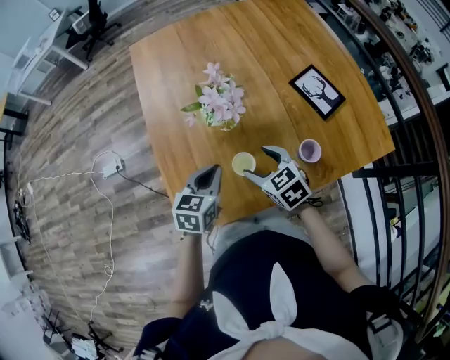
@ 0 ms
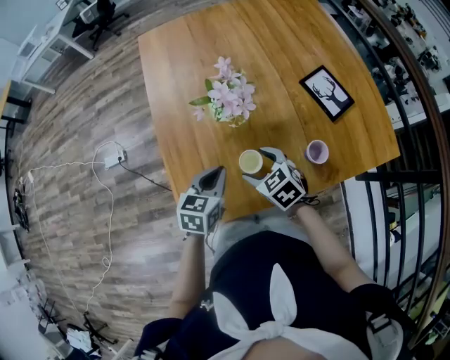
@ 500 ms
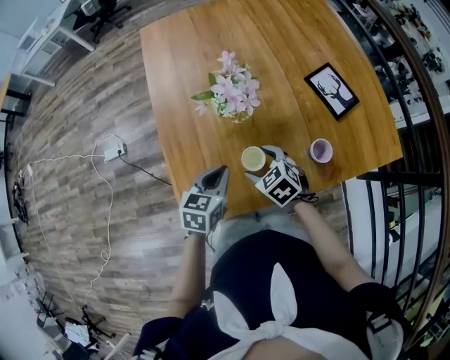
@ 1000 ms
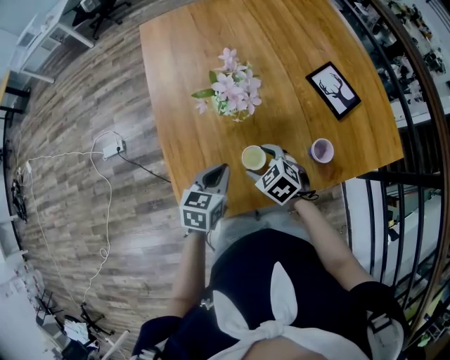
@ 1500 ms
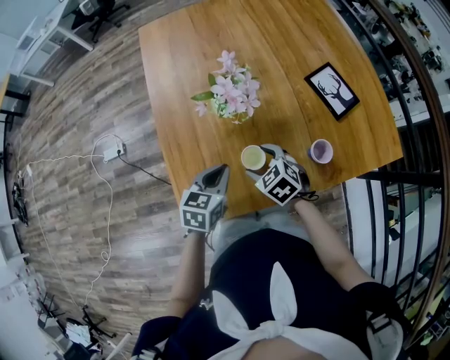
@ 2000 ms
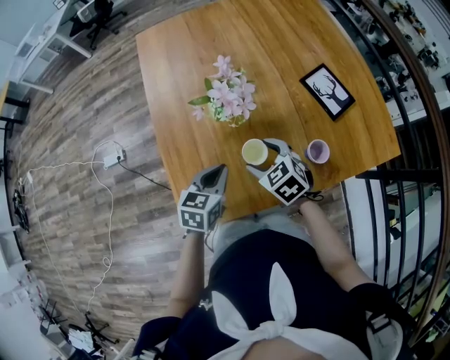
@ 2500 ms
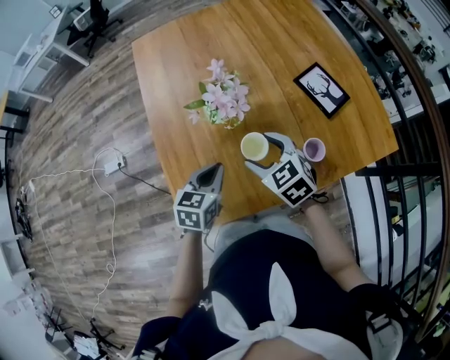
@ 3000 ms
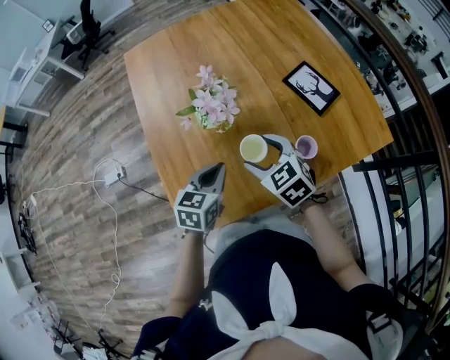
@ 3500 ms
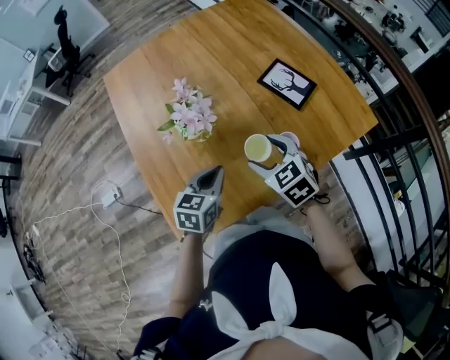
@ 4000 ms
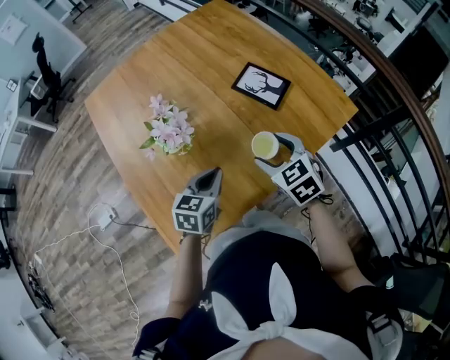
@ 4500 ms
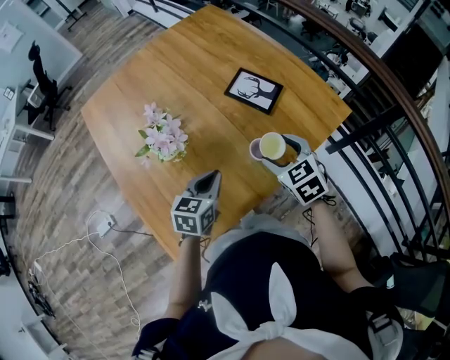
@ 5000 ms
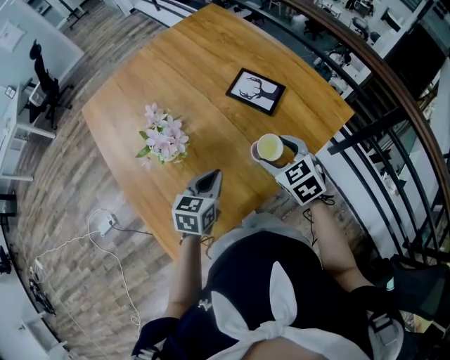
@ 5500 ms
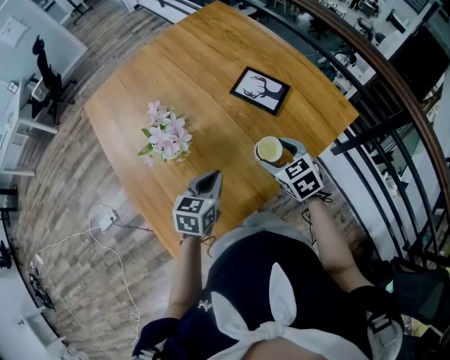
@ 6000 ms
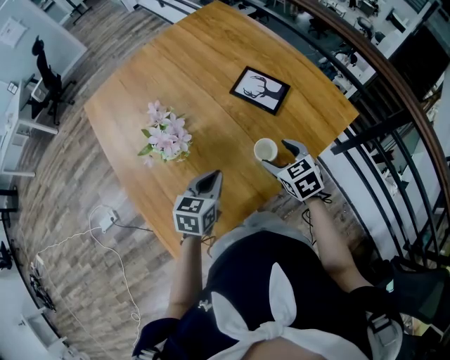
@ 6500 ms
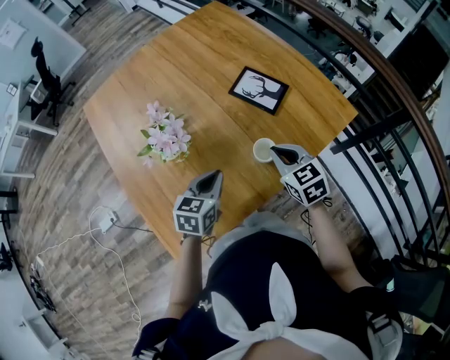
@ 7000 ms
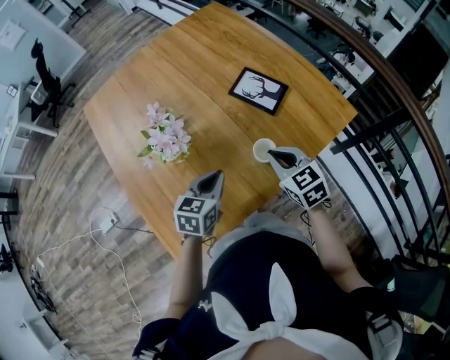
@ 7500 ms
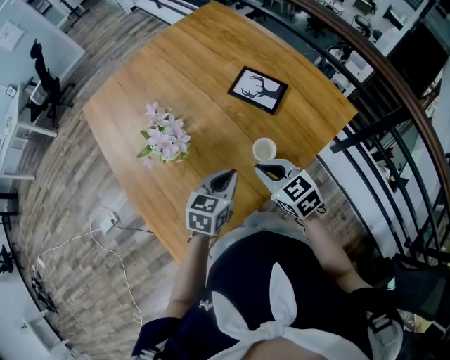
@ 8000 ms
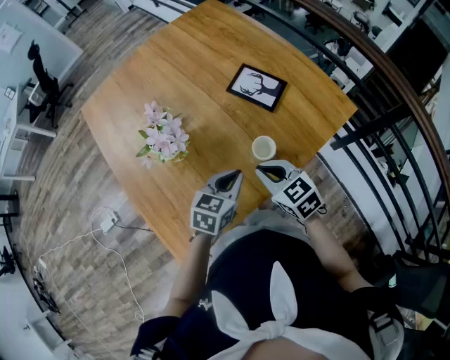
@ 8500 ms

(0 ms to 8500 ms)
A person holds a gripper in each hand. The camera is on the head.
0 ms - 2000 ms: The right gripper goes roughly 5 cm downward.
2000 ms - 4000 ms: The right gripper travels to the right and upward by approximately 15 cm, and turns by roughly 20 degrees. Meanwhile the left gripper goes about 10 cm to the right.
4000 ms - 6500 ms: The left gripper goes some 5 cm to the right. The right gripper goes some 15 cm to the right.
6500 ms - 8500 ms: The left gripper moves to the right, some 5 cm. The right gripper heads backward and to the left, covering approximately 10 cm, and closes.

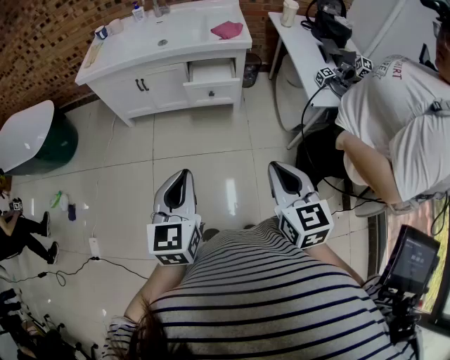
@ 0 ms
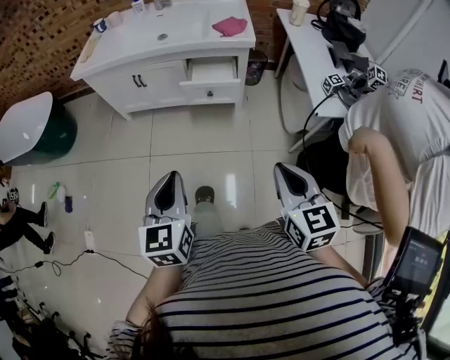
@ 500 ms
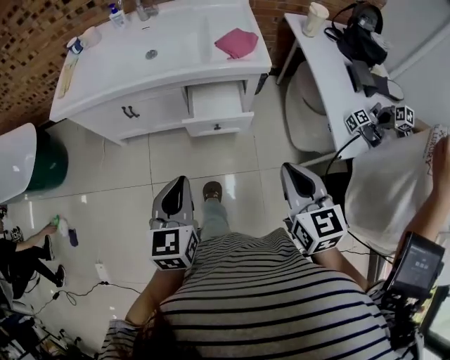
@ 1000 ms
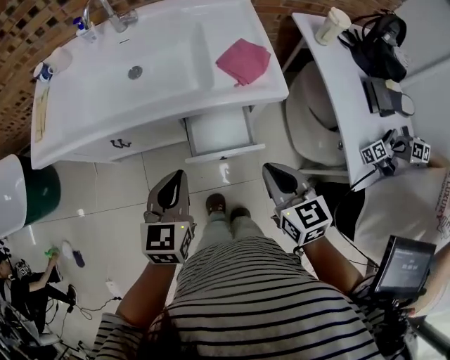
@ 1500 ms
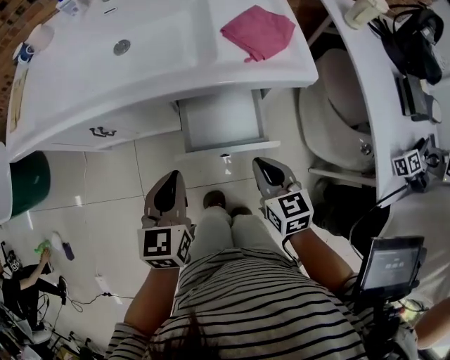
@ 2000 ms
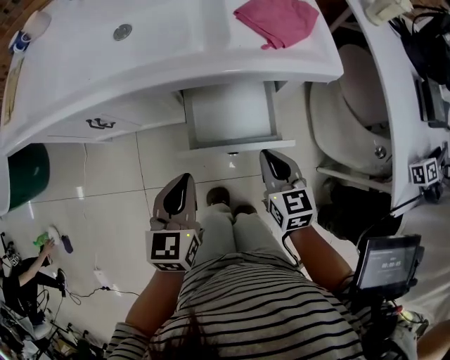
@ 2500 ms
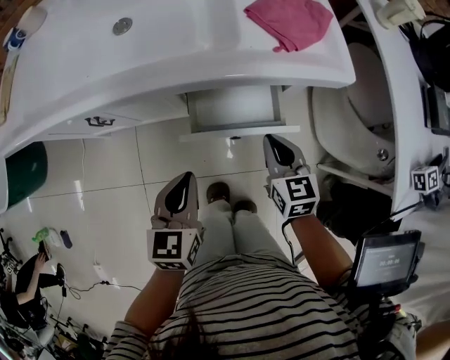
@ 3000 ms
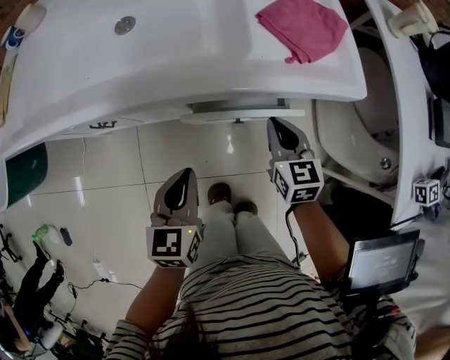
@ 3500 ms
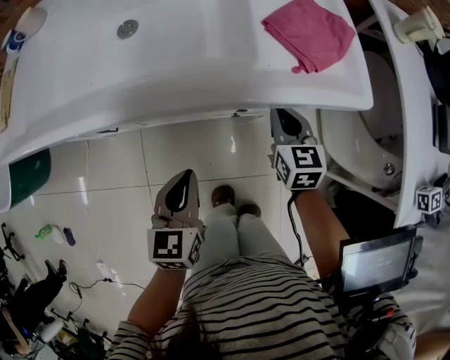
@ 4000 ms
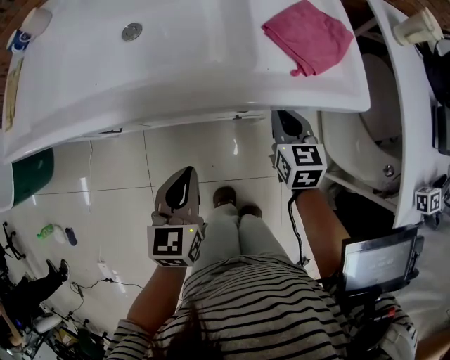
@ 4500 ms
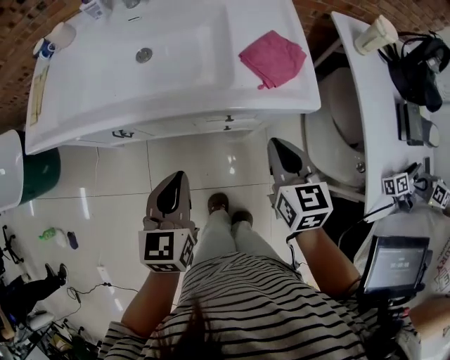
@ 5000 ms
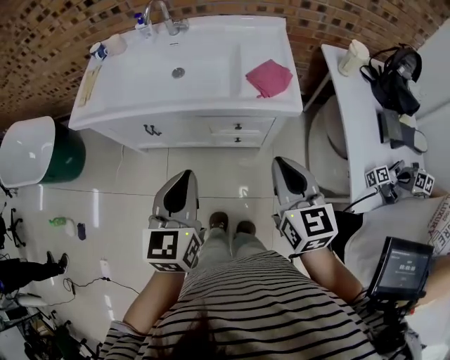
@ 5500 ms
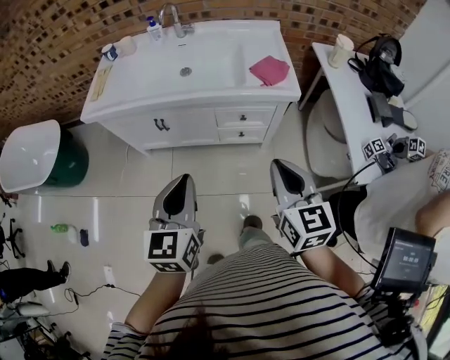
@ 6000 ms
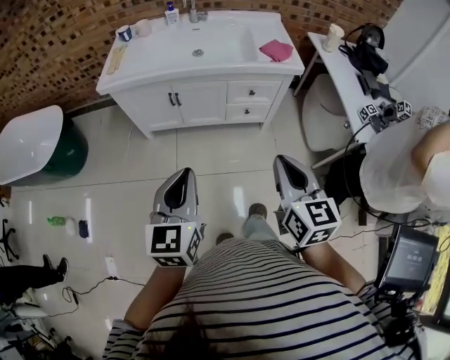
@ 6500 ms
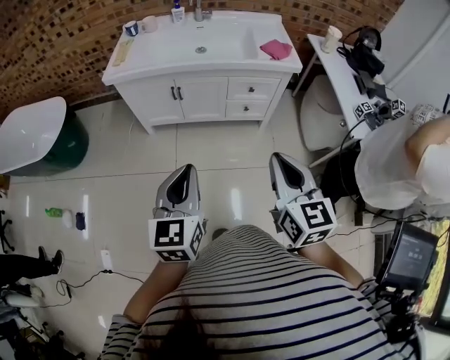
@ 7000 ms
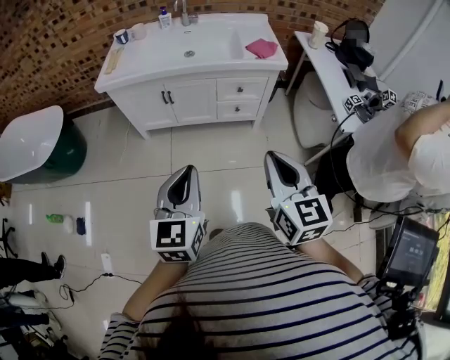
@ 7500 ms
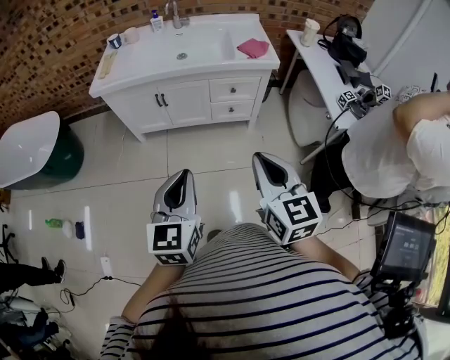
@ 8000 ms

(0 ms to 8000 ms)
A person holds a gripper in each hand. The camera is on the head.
0 ms - 2000 ms: The pair of grippers is taken forward, approximately 50 cm. The two grippers go about 30 cm downward.
2000 ms - 4000 ms: The right gripper travels forward by about 20 cm. Meanwhile the left gripper heads downward and forward, covering roughly 10 cm.
4000 ms - 6000 ms: Both grippers travel together upward and backward, approximately 40 cm.
6000 ms - 8000 ms: The right gripper moves backward and to the left, some 25 cm. Meanwhile the left gripper shifts roughly 25 cm backward.

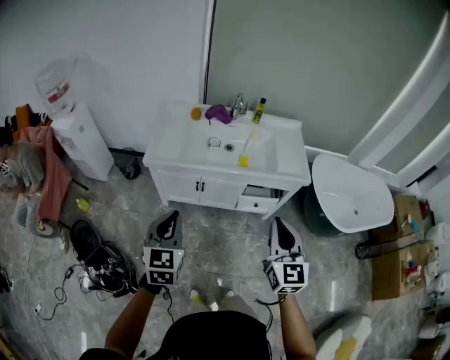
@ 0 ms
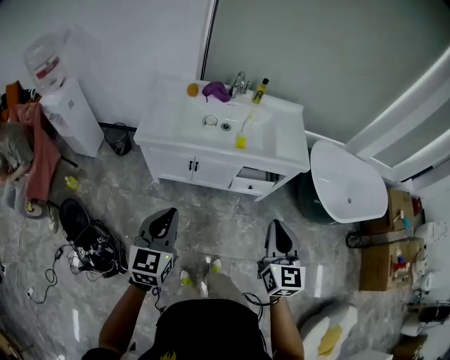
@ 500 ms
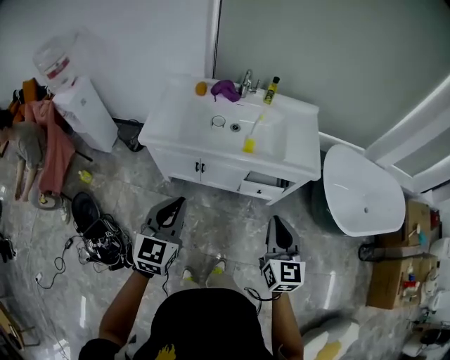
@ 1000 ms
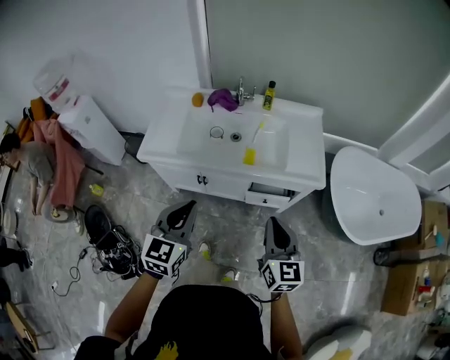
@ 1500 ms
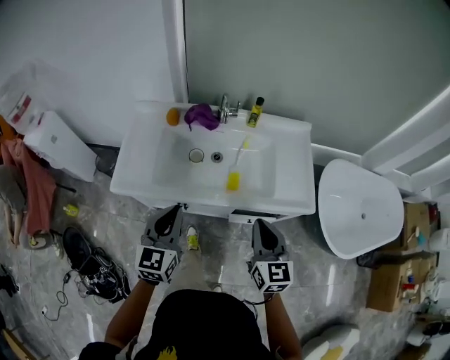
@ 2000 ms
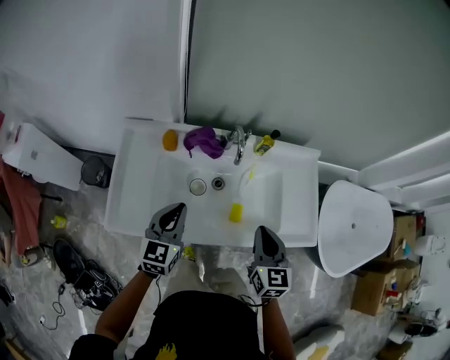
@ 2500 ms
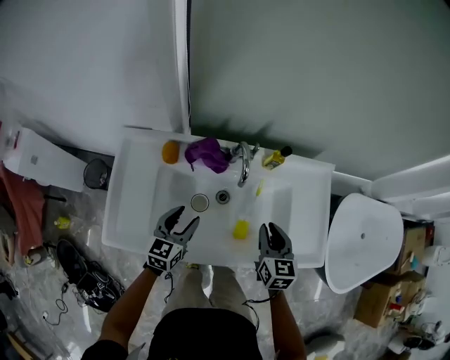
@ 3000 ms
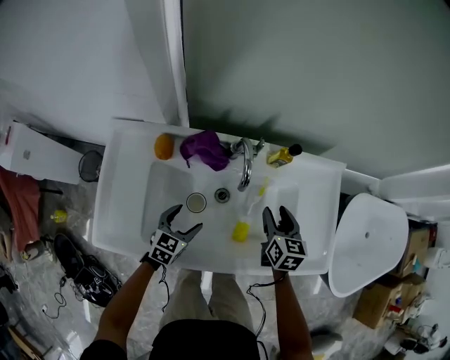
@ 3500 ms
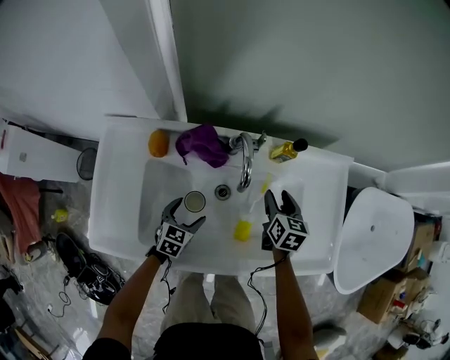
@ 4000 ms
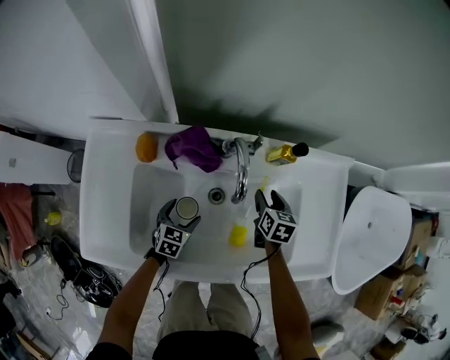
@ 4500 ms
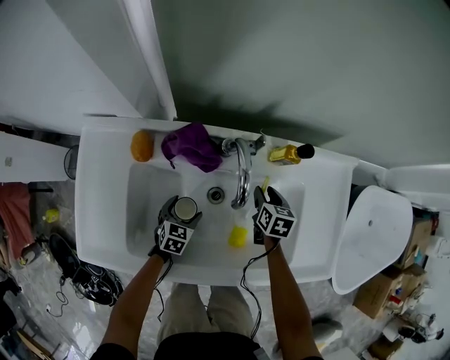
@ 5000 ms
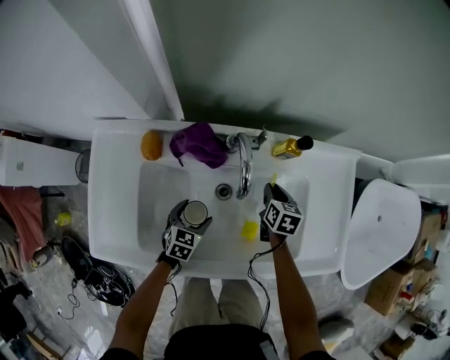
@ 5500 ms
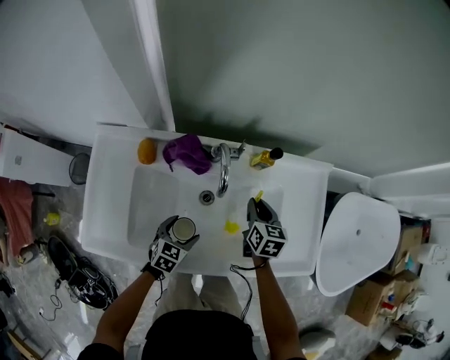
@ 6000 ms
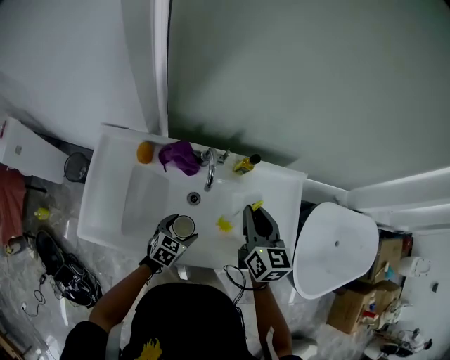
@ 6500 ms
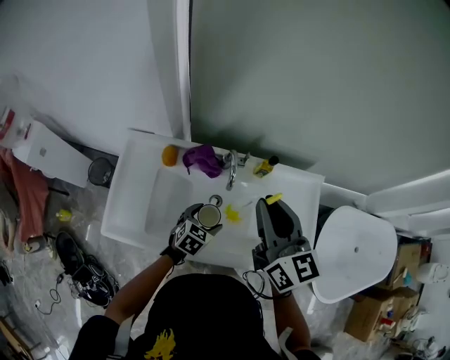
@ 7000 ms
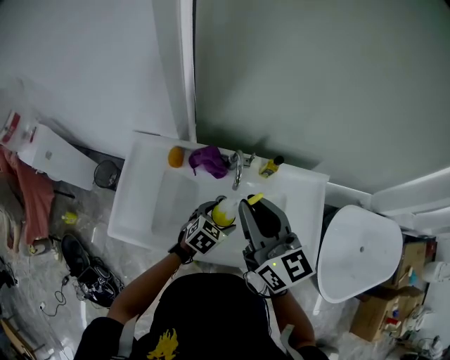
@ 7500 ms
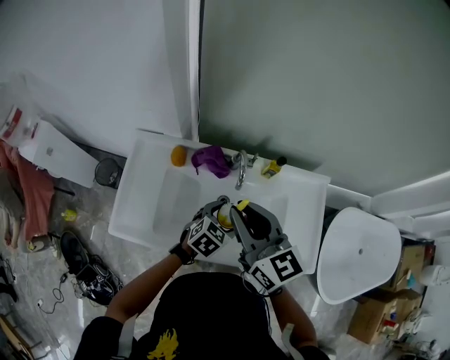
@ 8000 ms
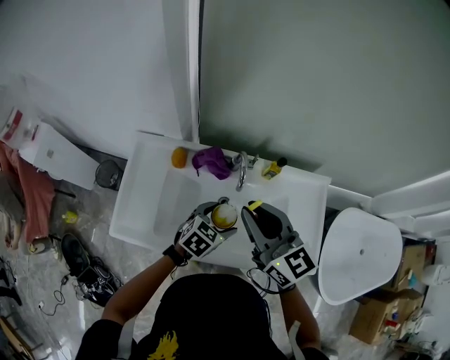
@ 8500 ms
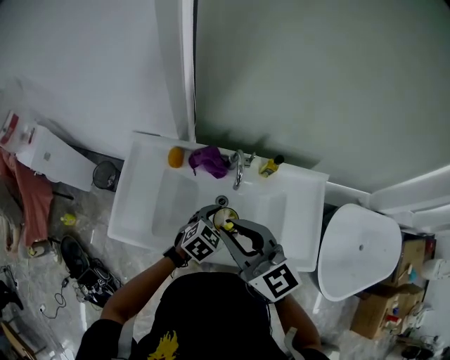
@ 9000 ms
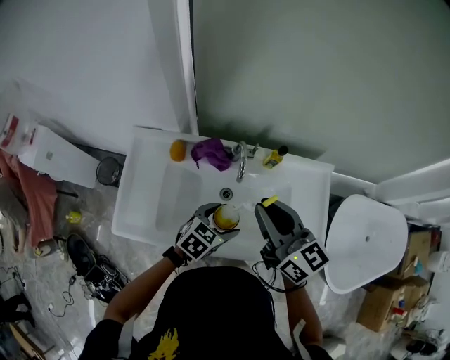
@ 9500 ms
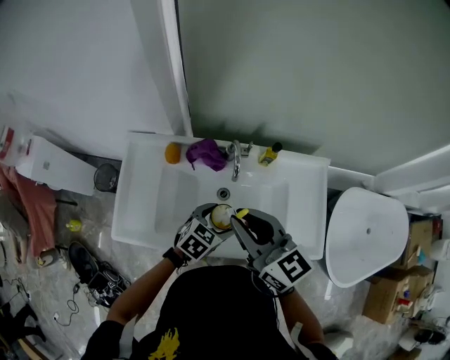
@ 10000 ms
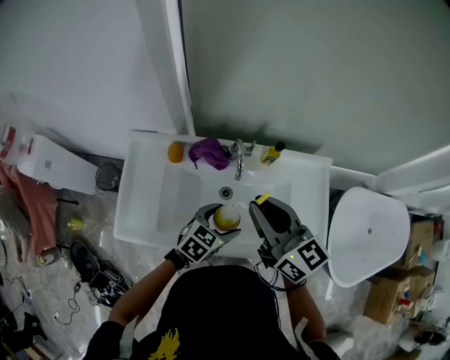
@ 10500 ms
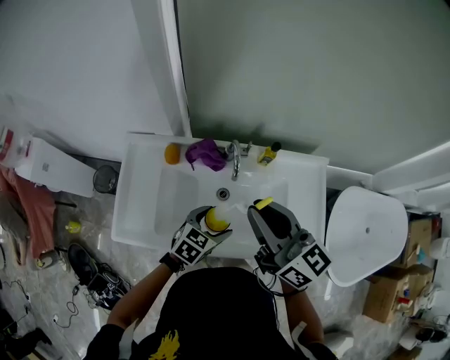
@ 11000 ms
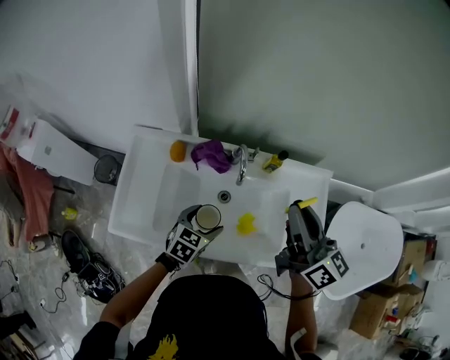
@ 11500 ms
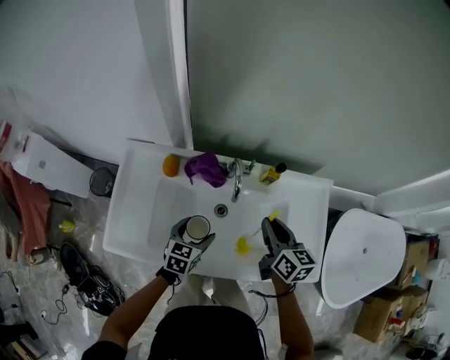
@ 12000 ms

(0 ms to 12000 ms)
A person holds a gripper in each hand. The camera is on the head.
0 ms - 2000 ms: The grippers both shift forward by roughly 30 cm.
2000 ms - 4000 ms: The right gripper heads forward and downward, covering approximately 50 cm, changes its angle by roughly 30 degrees, and opens its fingers. The left gripper is displaced downward and forward by approximately 50 cm, angles its fingers downward, by about 30 degrees, and opens.
4000 ms - 6000 ms: The left gripper reaches some 10 cm downward, then returns; the right gripper travels downward and back again, some 10 cm each way, and closes its fingers.
6000 ms - 8000 ms: The right gripper shifts some 35 cm upward and to the left, and angles its fingers upward, by about 30 degrees, while the left gripper shifts some 20 cm upward.
8000 ms - 10000 ms: The right gripper moves some 5 cm to the right and comes back.
10000 ms - 12000 ms: The left gripper moves to the left and downward, approximately 10 cm, and rotates approximately 20 degrees. The right gripper shifts approximately 20 cm downward, to the right and forward, and changes its angle by roughly 30 degrees.
